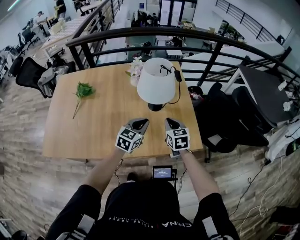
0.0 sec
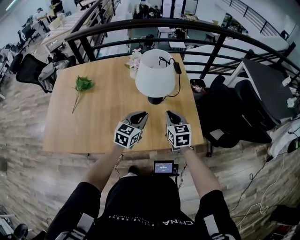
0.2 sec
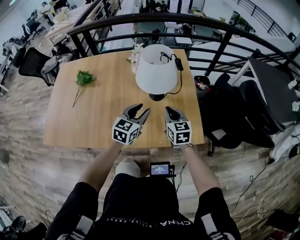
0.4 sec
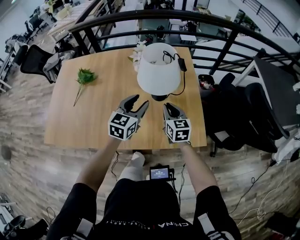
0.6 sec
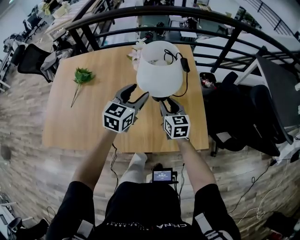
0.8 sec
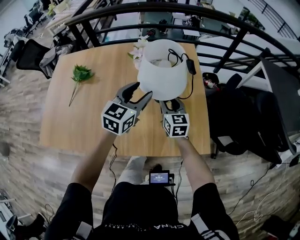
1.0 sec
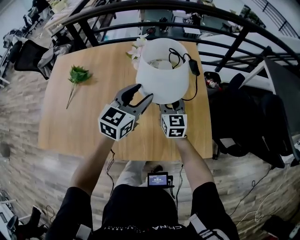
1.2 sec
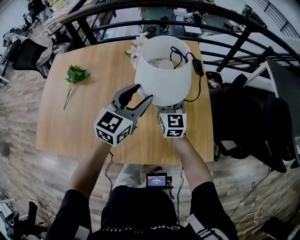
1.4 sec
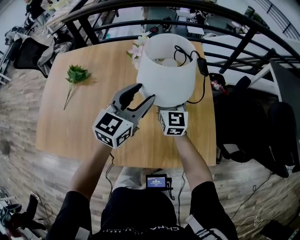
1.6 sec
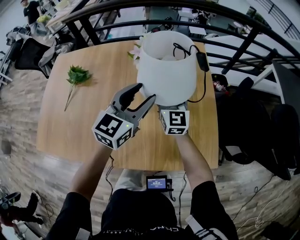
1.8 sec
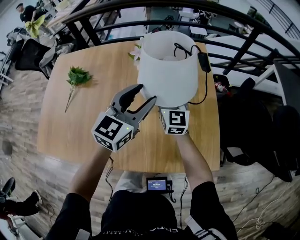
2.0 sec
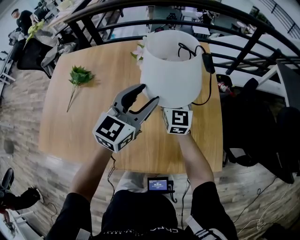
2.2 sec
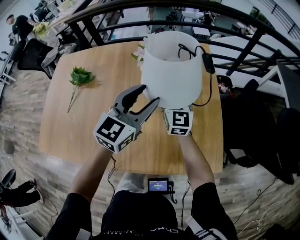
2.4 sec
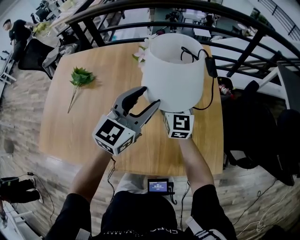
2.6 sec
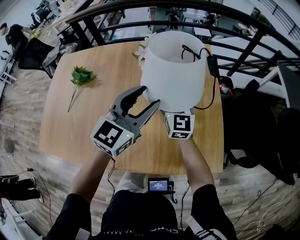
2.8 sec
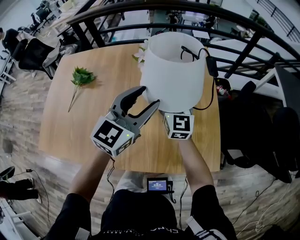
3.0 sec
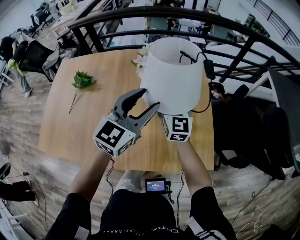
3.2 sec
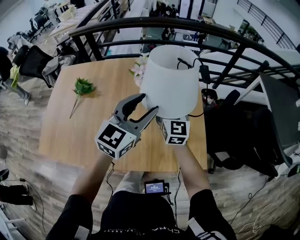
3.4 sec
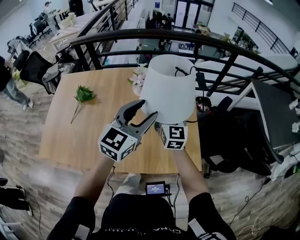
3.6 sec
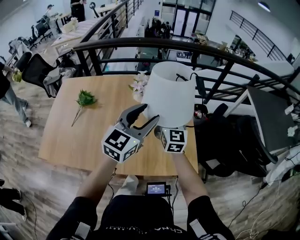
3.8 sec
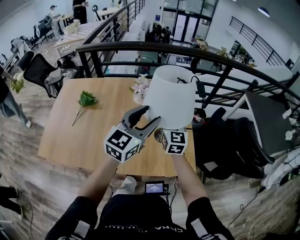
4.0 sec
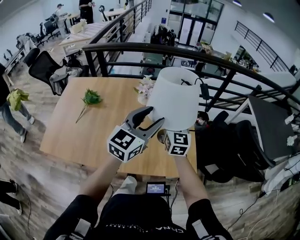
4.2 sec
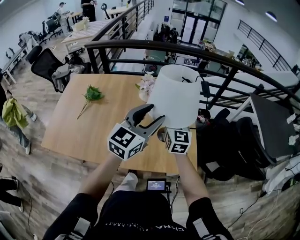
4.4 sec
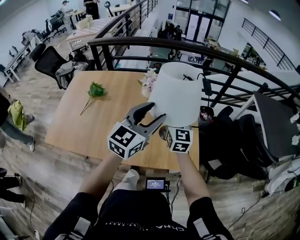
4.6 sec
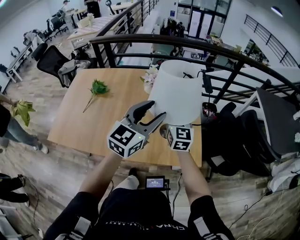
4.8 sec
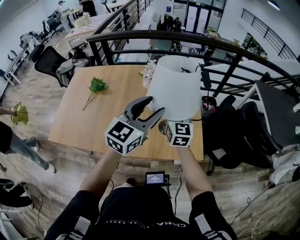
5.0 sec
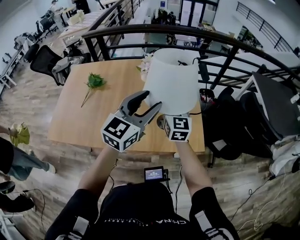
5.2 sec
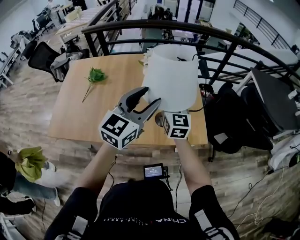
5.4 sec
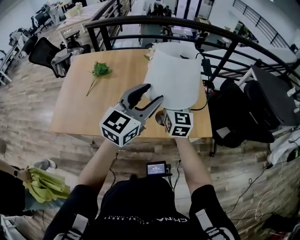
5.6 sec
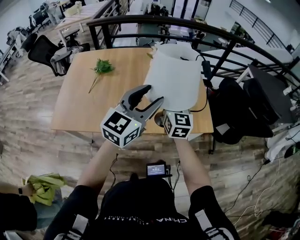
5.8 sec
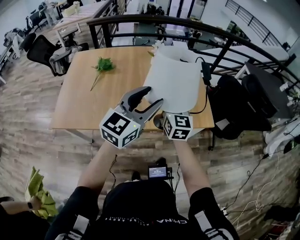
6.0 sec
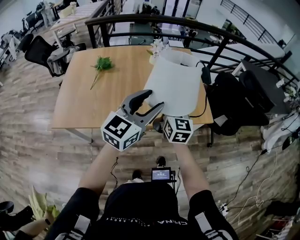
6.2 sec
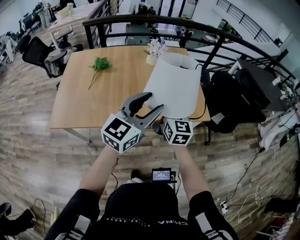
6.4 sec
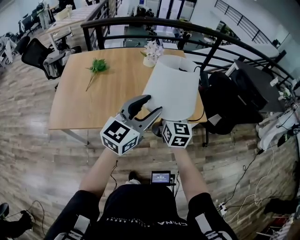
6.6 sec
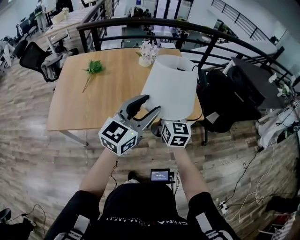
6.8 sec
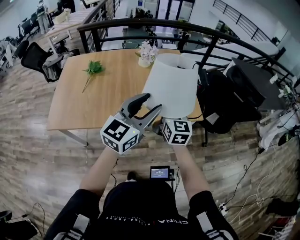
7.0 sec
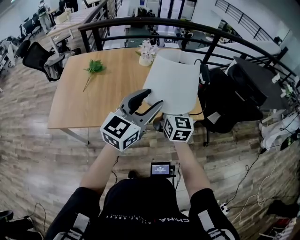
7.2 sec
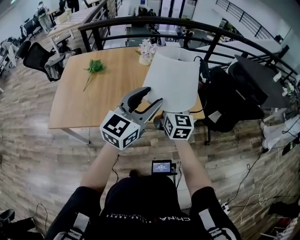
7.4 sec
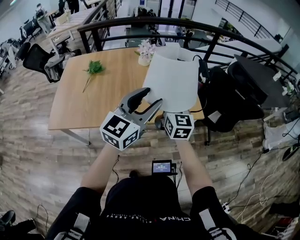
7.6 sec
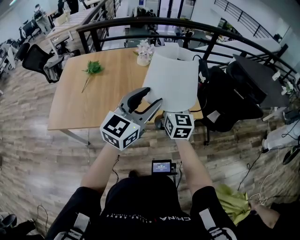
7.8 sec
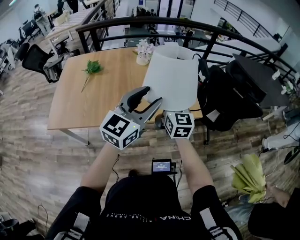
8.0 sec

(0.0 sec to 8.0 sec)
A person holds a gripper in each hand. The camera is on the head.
0.0 sec - 1.6 sec: The grippers both shift forward by some 20 cm. The left gripper opens. The right gripper tips its fingers upward by roughly 30 degrees, and opens up.
1.6 sec - 3.2 sec: The two grippers go about 5 cm upward.
3.2 sec - 4.8 sec: Both grippers travel together backward, upward and to the right, some 20 cm.
4.8 sec - 6.4 sec: Both grippers move backward and to the left, roughly 25 cm.
6.4 sec - 8.0 sec: Both grippers travel together to the right, some 10 cm.

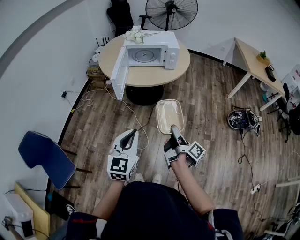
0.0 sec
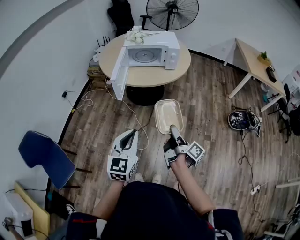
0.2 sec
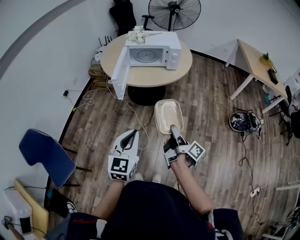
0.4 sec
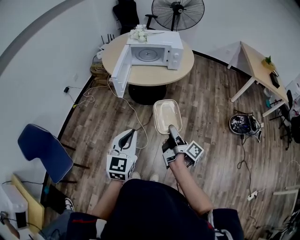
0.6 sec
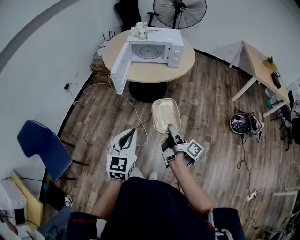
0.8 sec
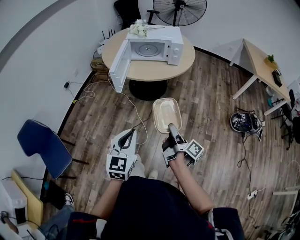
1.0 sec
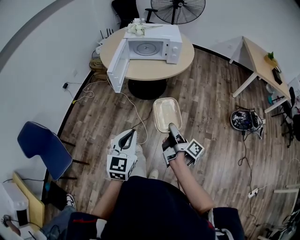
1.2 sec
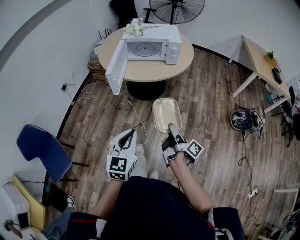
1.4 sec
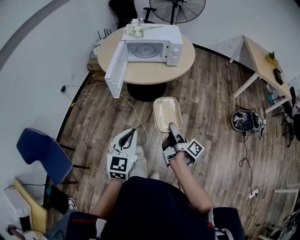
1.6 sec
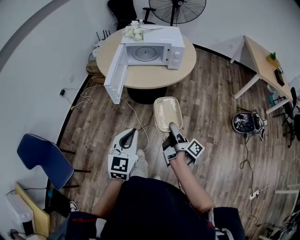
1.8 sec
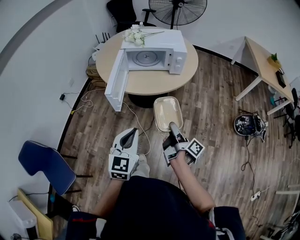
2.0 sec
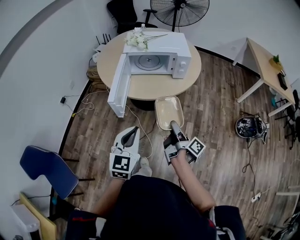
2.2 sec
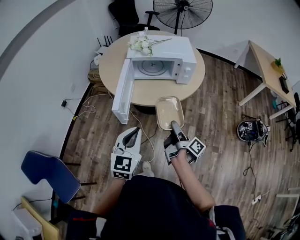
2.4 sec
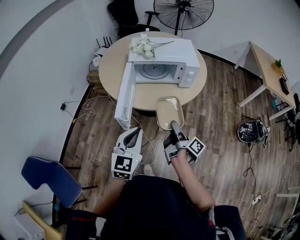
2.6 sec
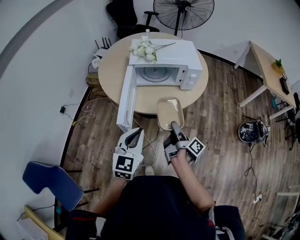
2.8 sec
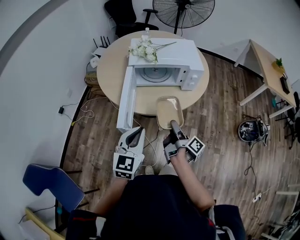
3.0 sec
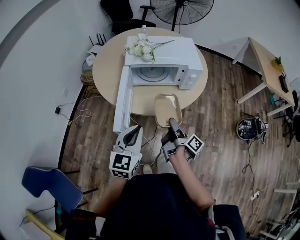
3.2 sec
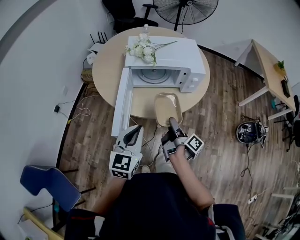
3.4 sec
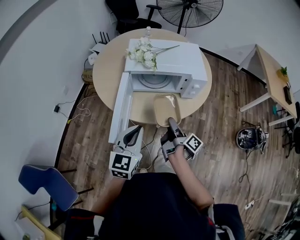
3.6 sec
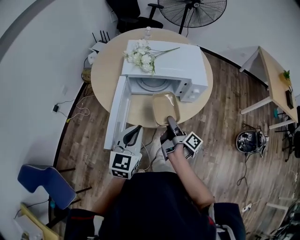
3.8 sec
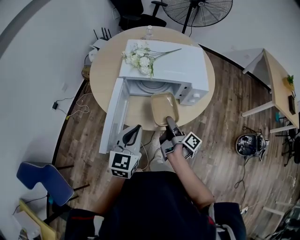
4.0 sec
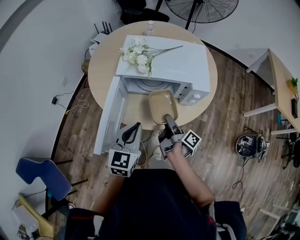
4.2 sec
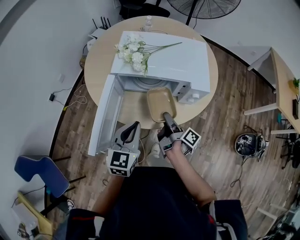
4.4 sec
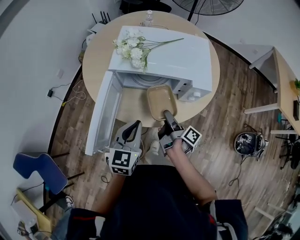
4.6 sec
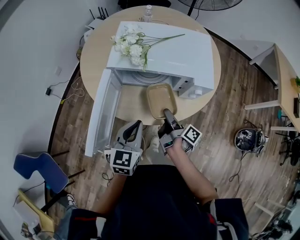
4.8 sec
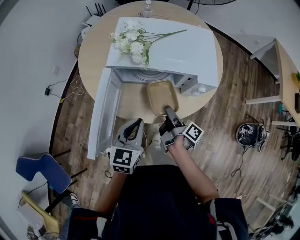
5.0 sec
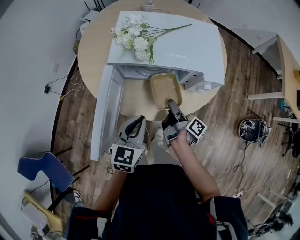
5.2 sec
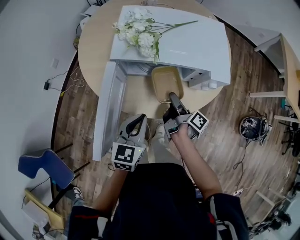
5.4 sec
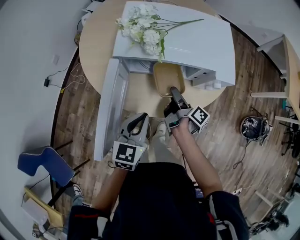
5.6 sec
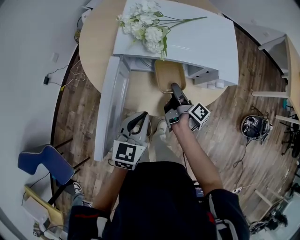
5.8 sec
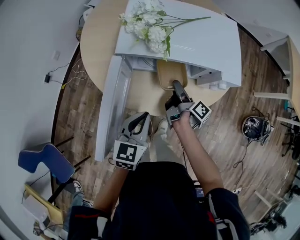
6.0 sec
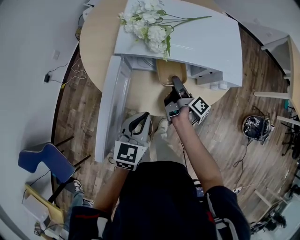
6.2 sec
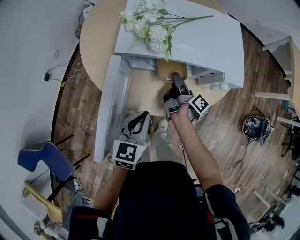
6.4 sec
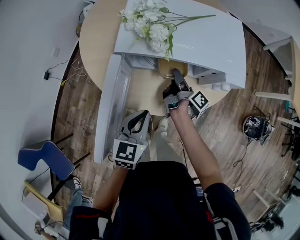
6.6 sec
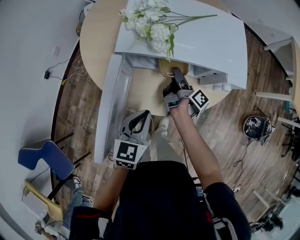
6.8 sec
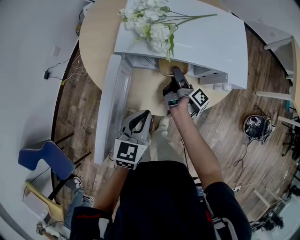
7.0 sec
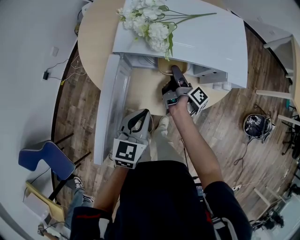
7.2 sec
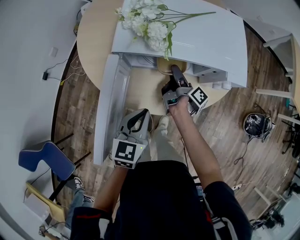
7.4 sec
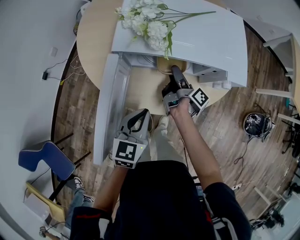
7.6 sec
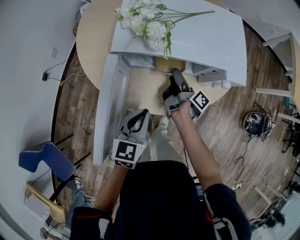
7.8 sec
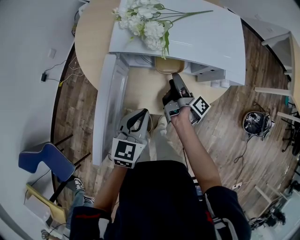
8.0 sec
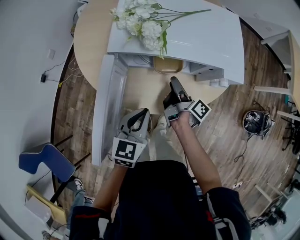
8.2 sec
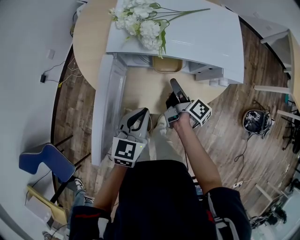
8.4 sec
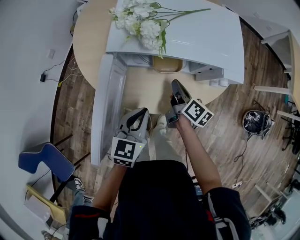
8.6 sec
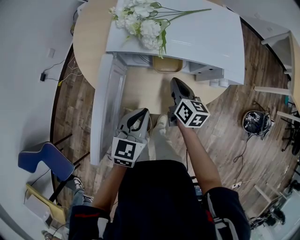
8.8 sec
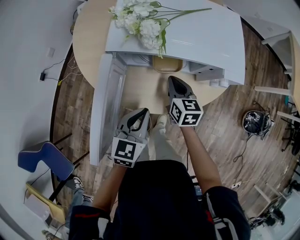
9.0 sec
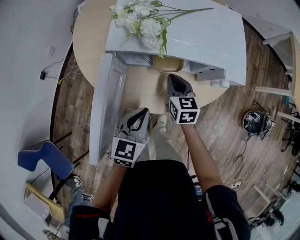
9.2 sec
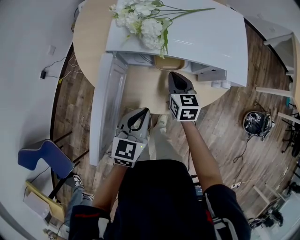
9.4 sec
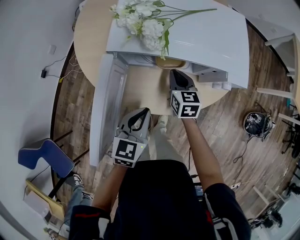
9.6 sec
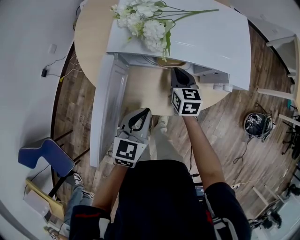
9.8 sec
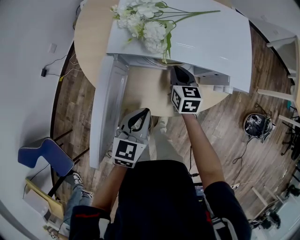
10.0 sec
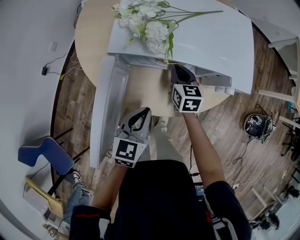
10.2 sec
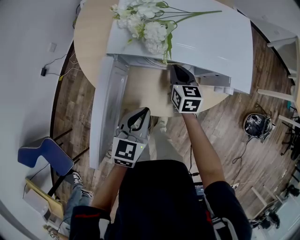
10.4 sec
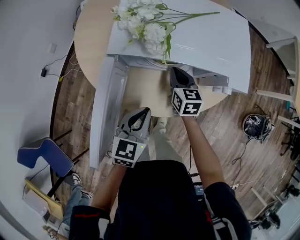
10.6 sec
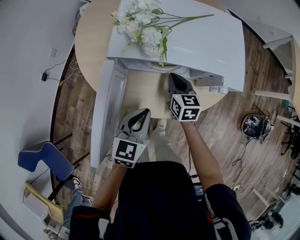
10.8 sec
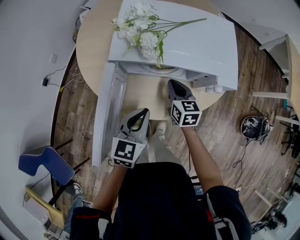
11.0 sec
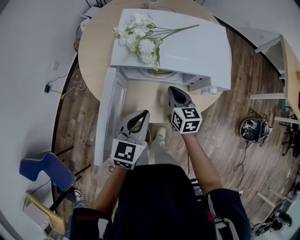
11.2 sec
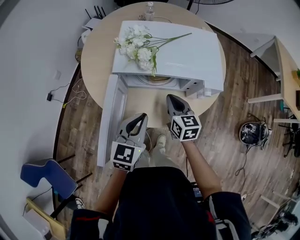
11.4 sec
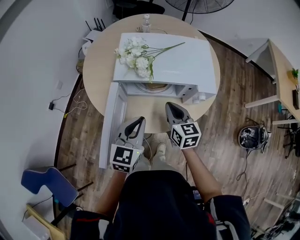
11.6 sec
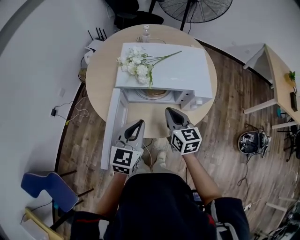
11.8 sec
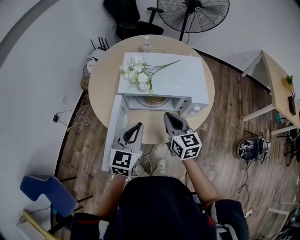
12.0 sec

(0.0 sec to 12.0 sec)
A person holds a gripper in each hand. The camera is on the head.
0.0 sec - 1.6 sec: Both grippers move forward, about 5 cm.
1.6 sec - 3.0 sec: The left gripper shifts roughly 30 cm forward. Meanwhile the right gripper is displaced forward and to the left by roughly 30 cm.
3.0 sec - 4.4 sec: Both grippers travel together forward, approximately 20 cm.
4.4 sec - 6.0 sec: The left gripper goes roughly 10 cm downward. Meanwhile the right gripper is displaced forward and downward by some 10 cm.
6.0 sec - 7.6 sec: The right gripper ends up some 5 cm from where it was.
7.6 sec - 9.0 sec: The right gripper rolls counterclockwise, seen from behind, by about 80 degrees, and closes.
9.0 sec - 10.4 sec: The right gripper moves forward, about 5 cm.
10.4 sec - 12.0 sec: The right gripper goes roughly 25 cm upward and backward, while the left gripper is displaced upward by roughly 15 cm, and turns by some 20 degrees.

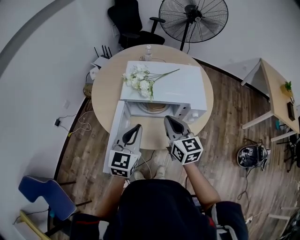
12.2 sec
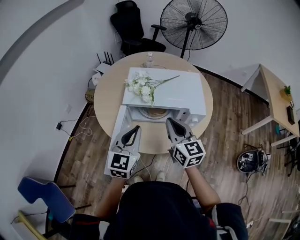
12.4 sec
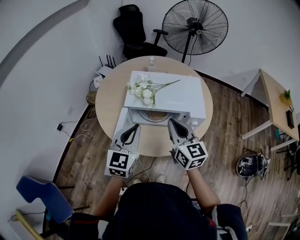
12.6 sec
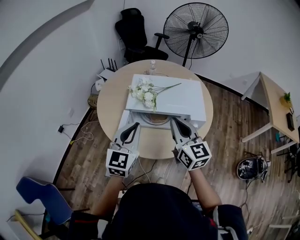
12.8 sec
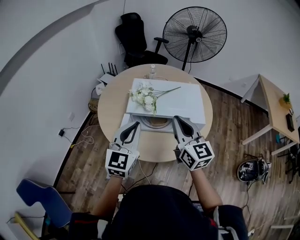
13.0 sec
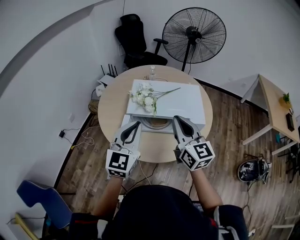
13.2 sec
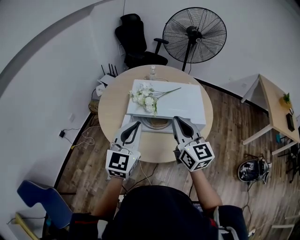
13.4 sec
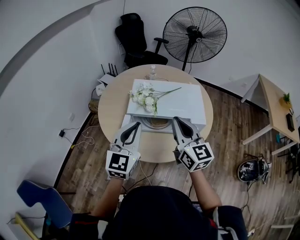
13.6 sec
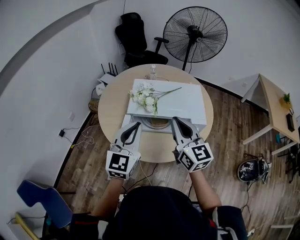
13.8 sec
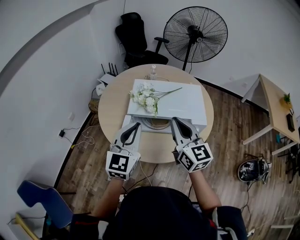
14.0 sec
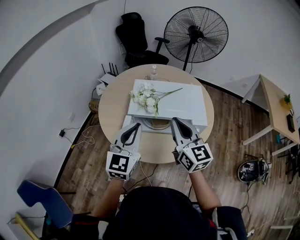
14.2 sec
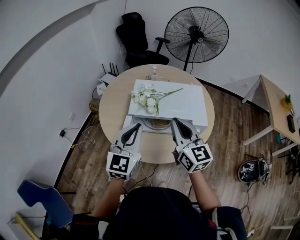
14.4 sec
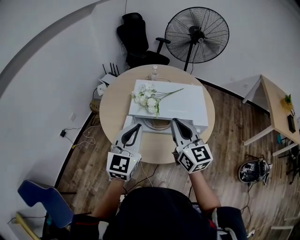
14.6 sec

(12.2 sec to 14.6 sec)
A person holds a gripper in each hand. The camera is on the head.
12.2 sec - 13.4 sec: Both grippers travel together upward, about 10 cm.
13.4 sec - 14.6 sec: Neither gripper changes place.

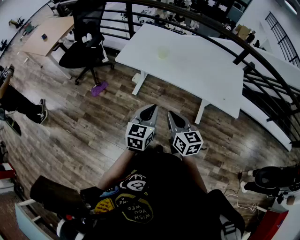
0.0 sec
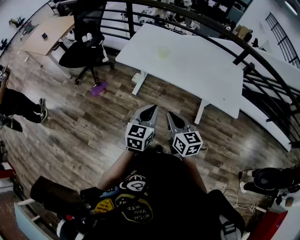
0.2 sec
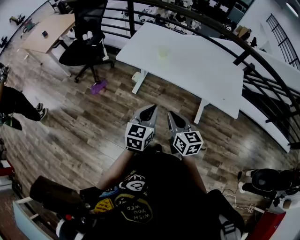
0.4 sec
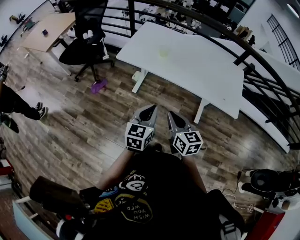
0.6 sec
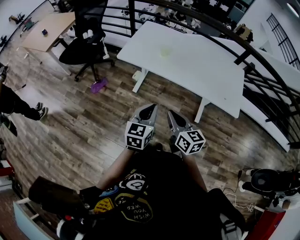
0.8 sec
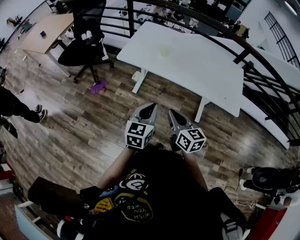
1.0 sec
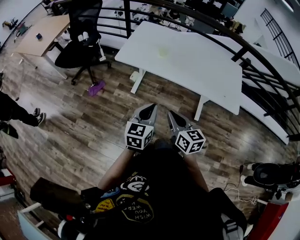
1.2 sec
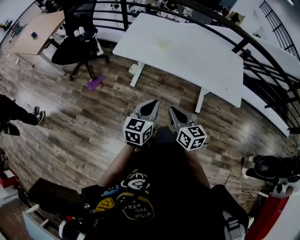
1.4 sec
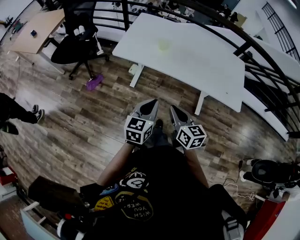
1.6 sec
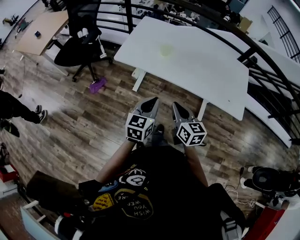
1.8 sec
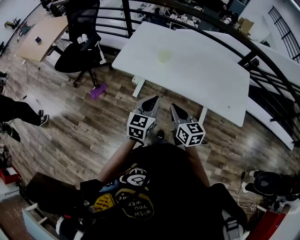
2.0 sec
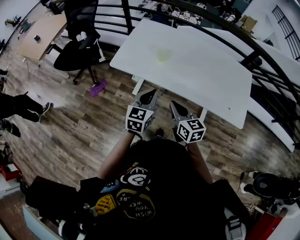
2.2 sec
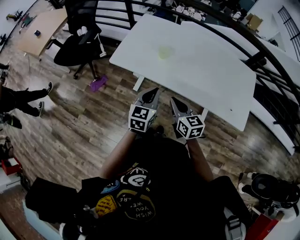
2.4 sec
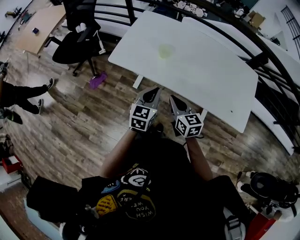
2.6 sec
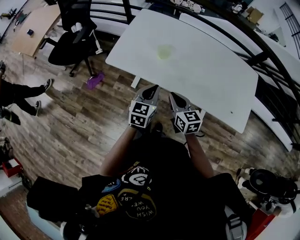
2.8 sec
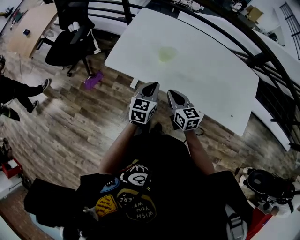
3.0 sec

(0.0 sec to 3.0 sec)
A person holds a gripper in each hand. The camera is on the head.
0.0 sec - 1.6 sec: The left gripper shifts by about 5 cm. The right gripper moves approximately 5 cm.
1.6 sec - 3.0 sec: The two grippers go about 30 cm forward.
